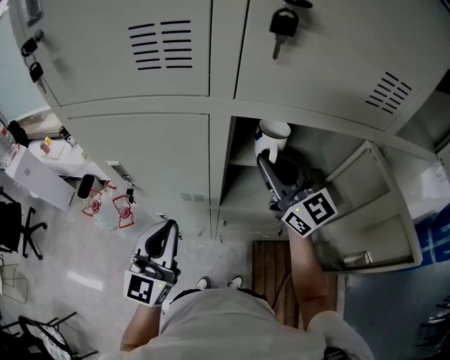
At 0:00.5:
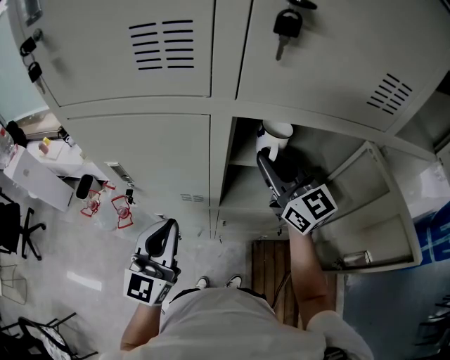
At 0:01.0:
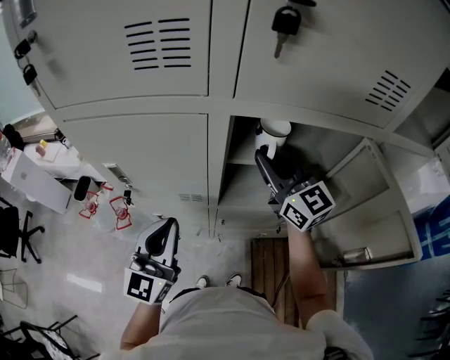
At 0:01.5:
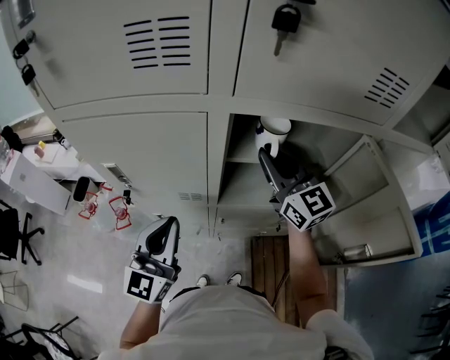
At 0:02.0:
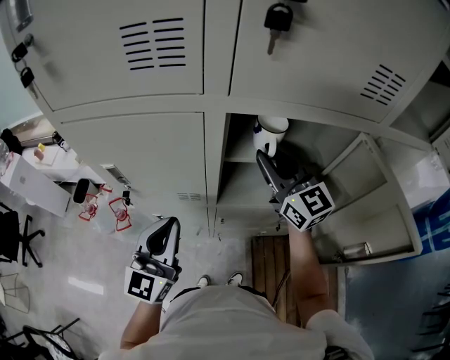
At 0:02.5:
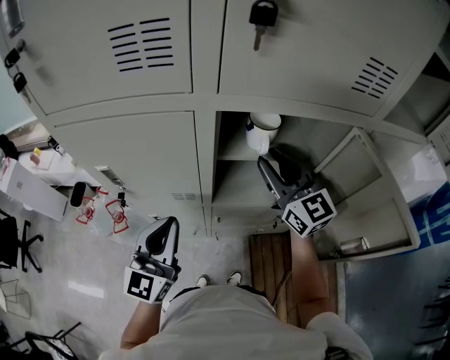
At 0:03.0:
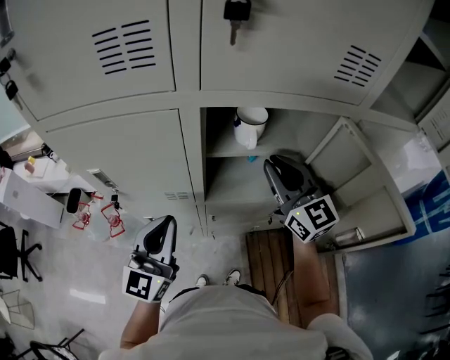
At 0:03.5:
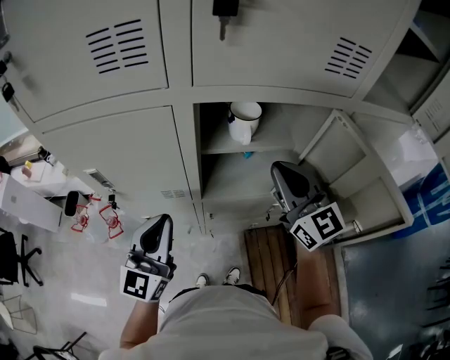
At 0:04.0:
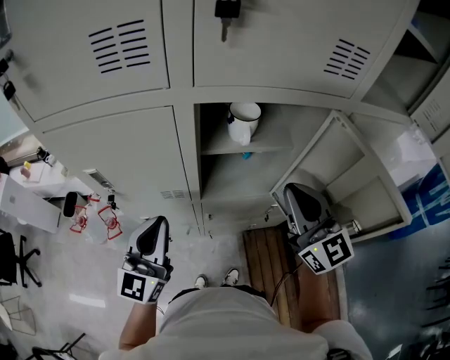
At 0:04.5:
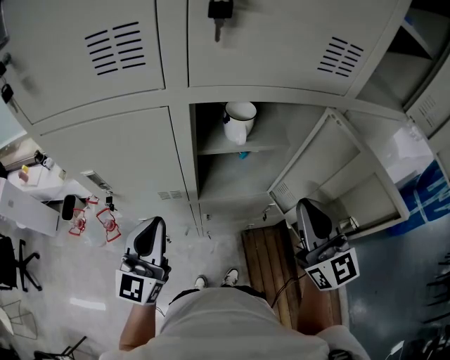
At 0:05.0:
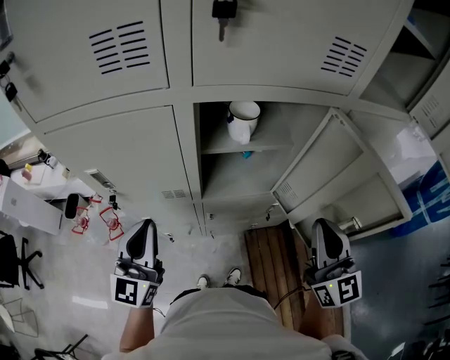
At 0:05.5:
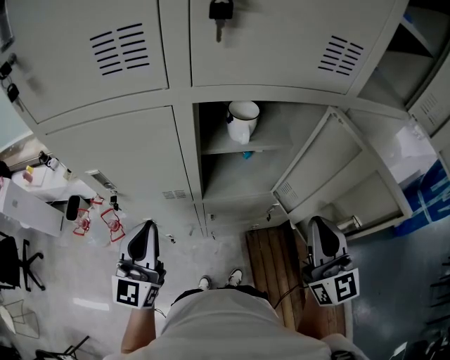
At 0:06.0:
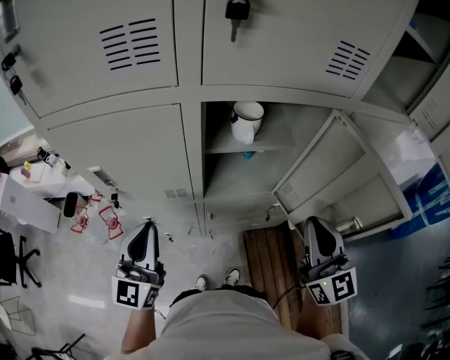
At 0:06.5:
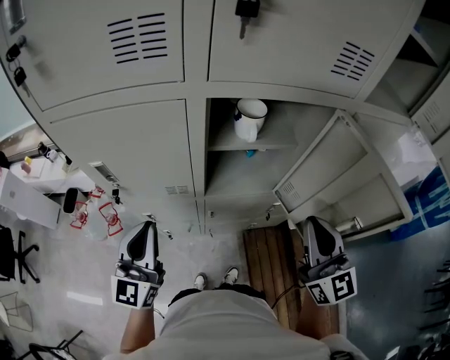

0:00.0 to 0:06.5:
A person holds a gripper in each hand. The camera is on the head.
0:00.0 to 0:02.0: The grippers stay close to where they were, moving slightly.
0:02.0 to 0:04.5: The right gripper travels backward and to the right by approximately 20 cm.
0:04.5 to 0:06.5: There are only small adjustments of the grippers.

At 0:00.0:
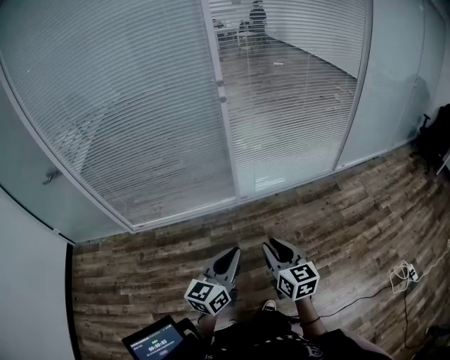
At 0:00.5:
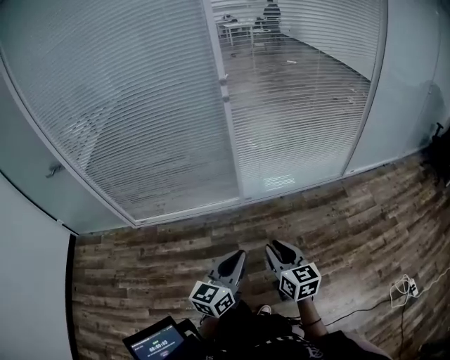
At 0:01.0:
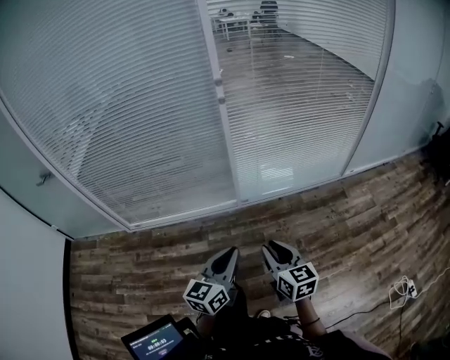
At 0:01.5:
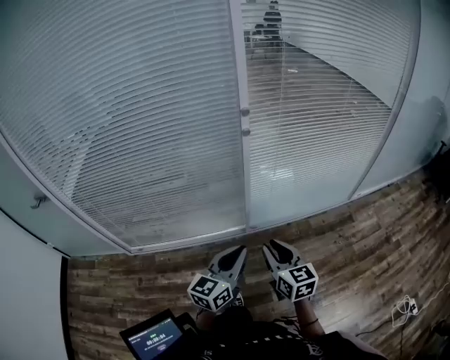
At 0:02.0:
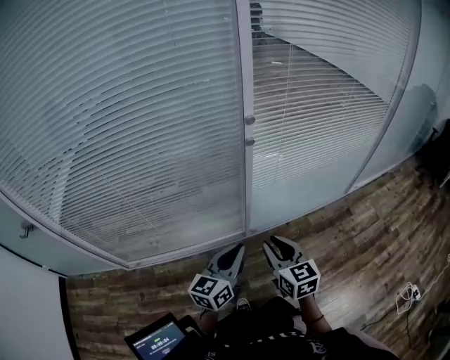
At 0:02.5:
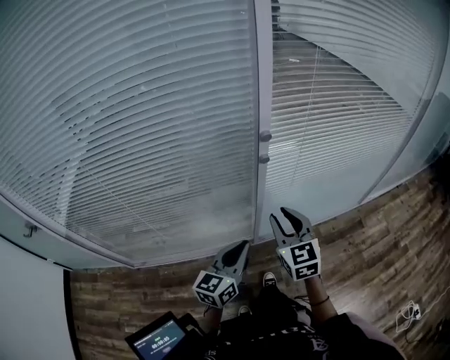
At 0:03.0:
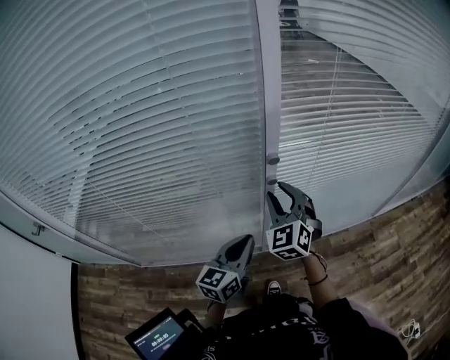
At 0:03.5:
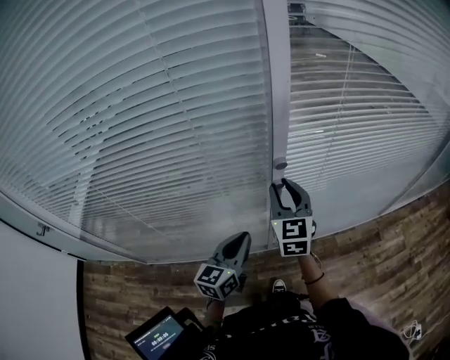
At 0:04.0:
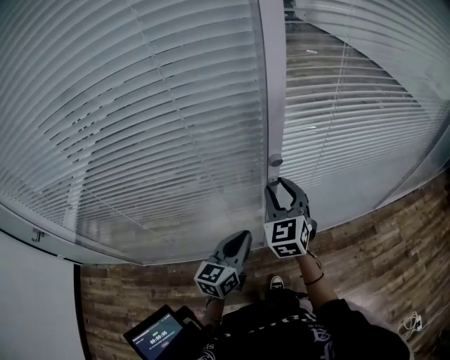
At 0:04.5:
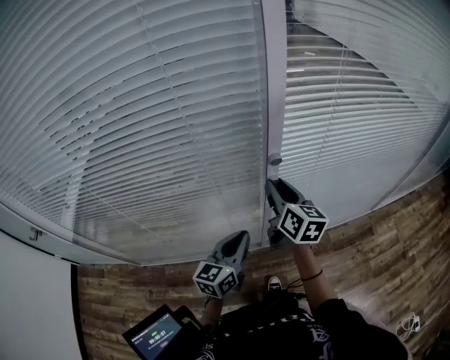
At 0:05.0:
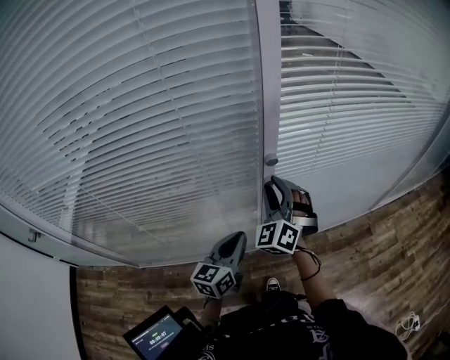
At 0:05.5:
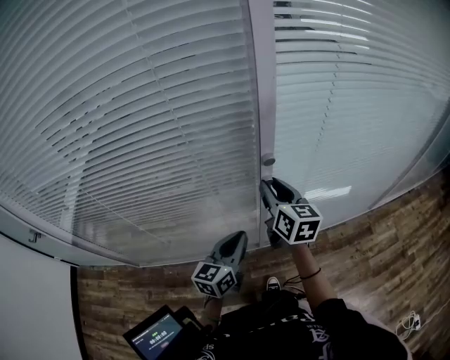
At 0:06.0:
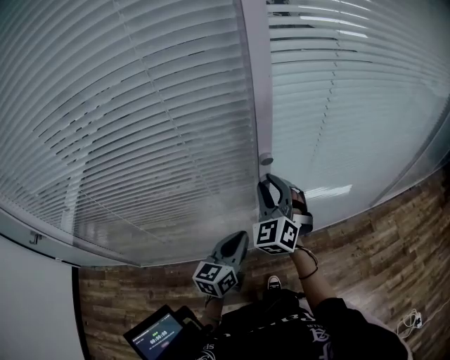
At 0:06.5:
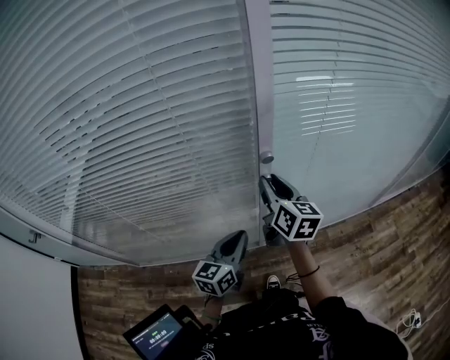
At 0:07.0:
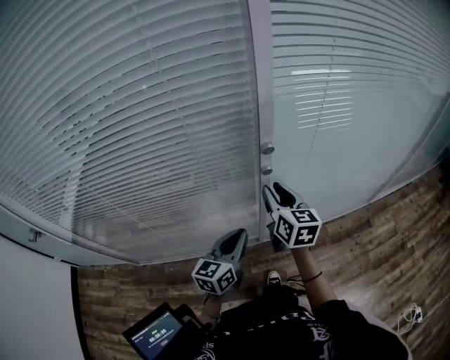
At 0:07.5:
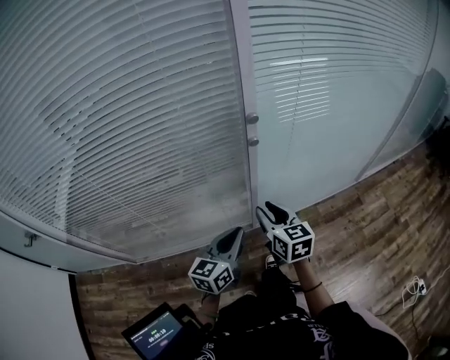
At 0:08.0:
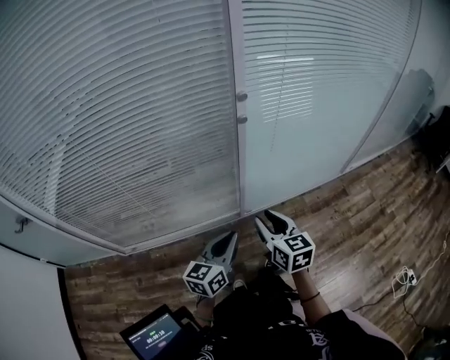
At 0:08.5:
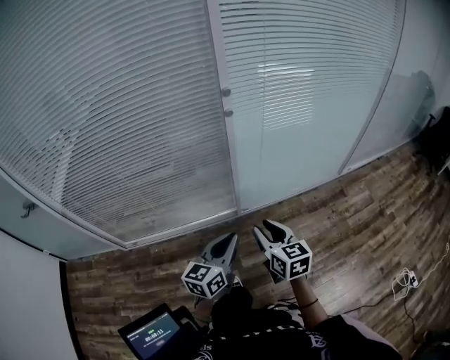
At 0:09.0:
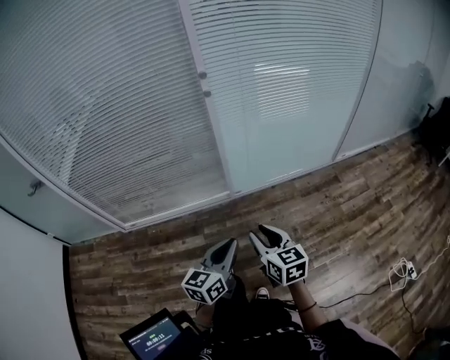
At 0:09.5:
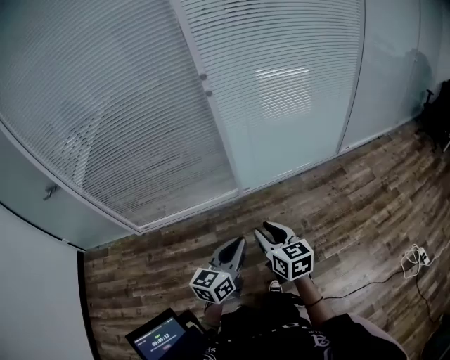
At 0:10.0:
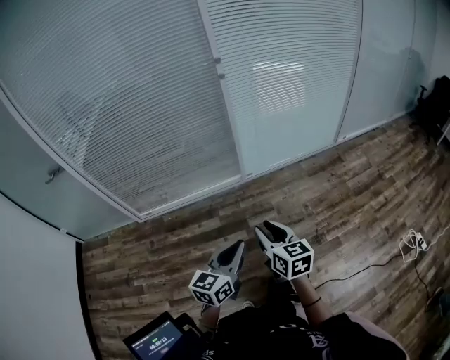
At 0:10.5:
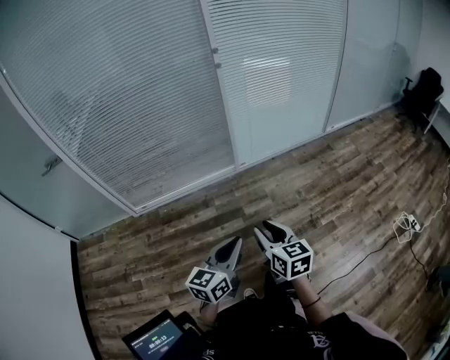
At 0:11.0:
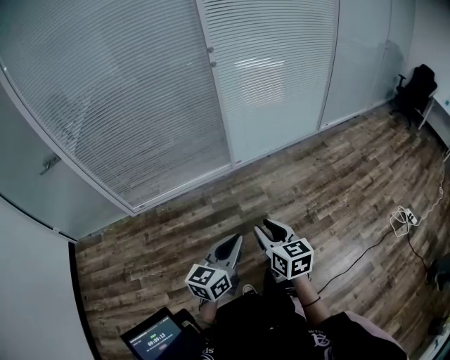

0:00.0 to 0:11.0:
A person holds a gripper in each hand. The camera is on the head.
0:00.0 to 0:02.0: The two grippers travel together, forward, about 50 cm.
0:02.0 to 0:03.5: Both grippers move forward, some 30 cm.
0:03.5 to 0:05.5: The right gripper swivels roughly 30 degrees.
0:05.5 to 0:07.5: The left gripper heads backward, covering roughly 10 cm, while the right gripper goes approximately 20 cm backward and downward.
0:07.5 to 0:09.0: The two grippers travel together, backward and to the right, about 40 cm.
0:09.0 to 0:11.0: The grippers both shift backward by roughly 35 cm.

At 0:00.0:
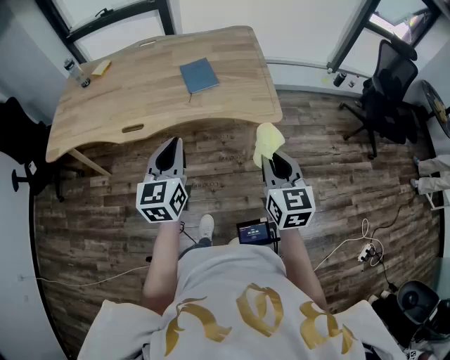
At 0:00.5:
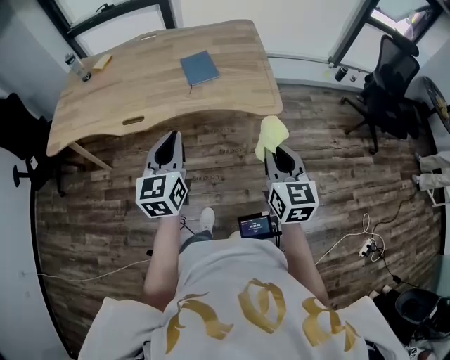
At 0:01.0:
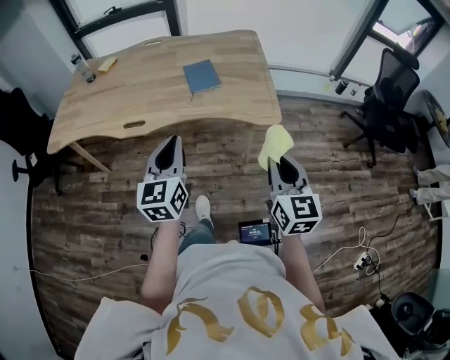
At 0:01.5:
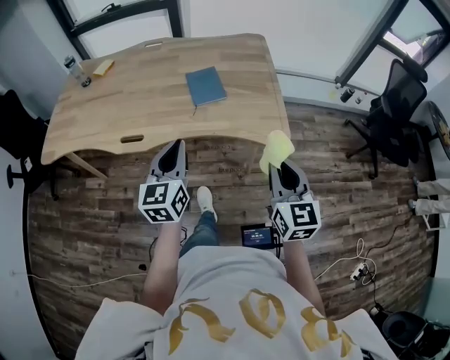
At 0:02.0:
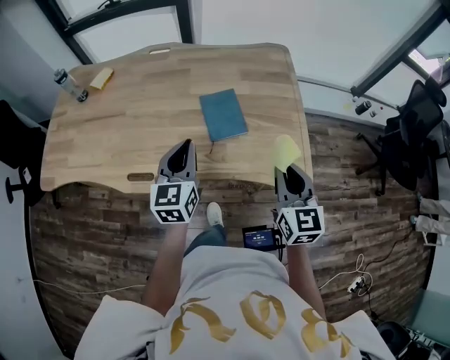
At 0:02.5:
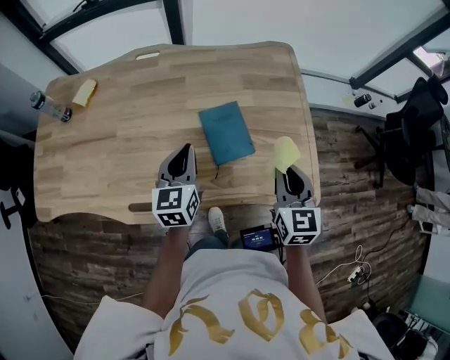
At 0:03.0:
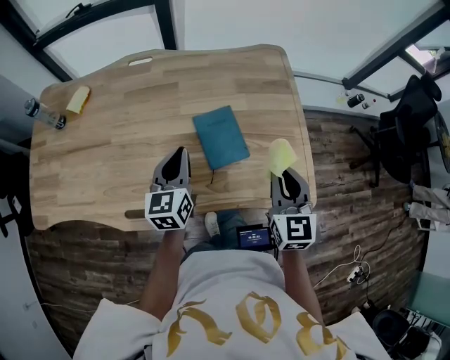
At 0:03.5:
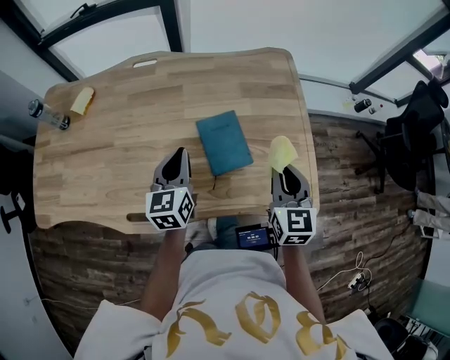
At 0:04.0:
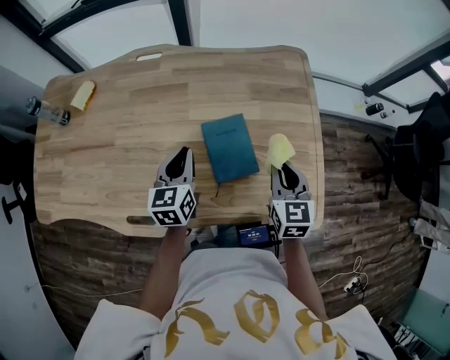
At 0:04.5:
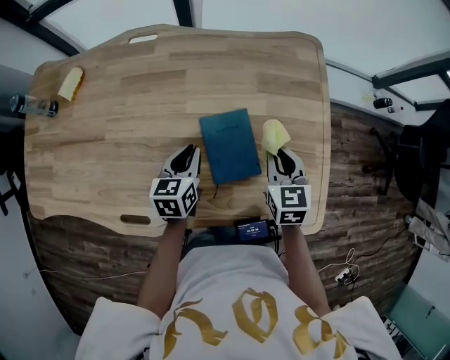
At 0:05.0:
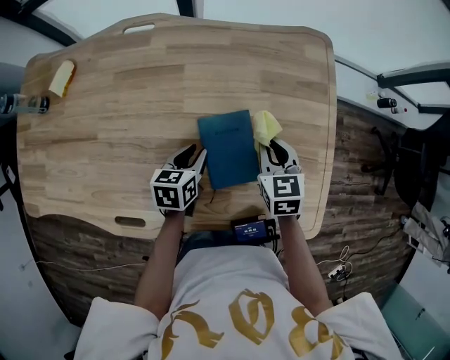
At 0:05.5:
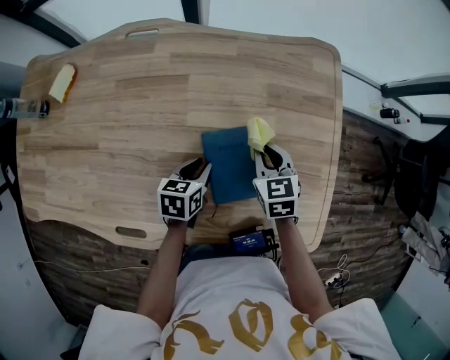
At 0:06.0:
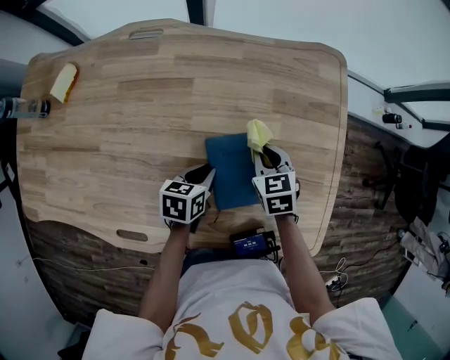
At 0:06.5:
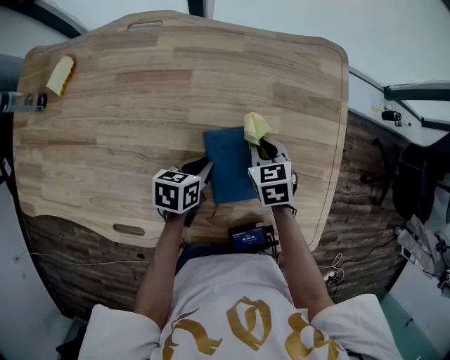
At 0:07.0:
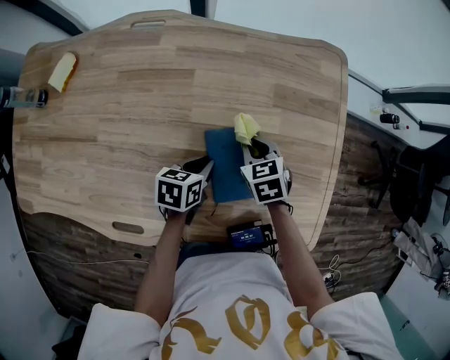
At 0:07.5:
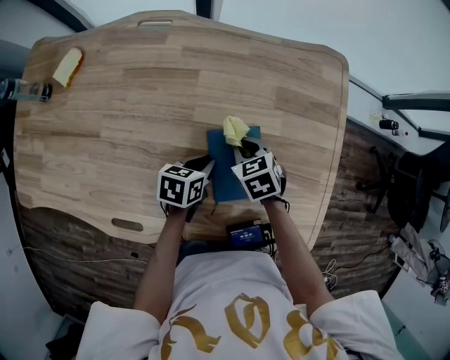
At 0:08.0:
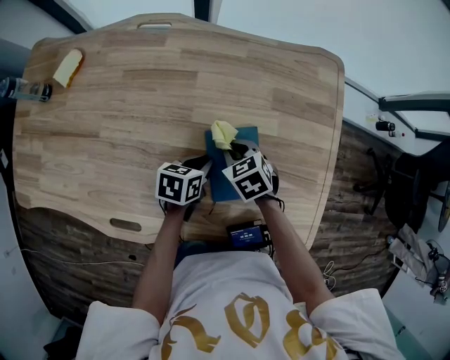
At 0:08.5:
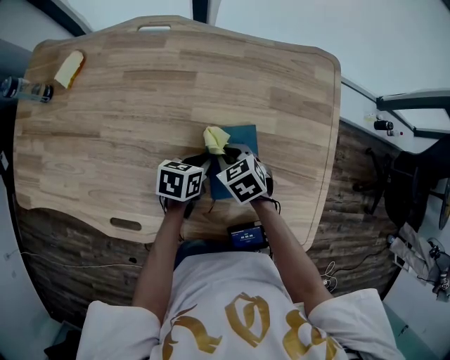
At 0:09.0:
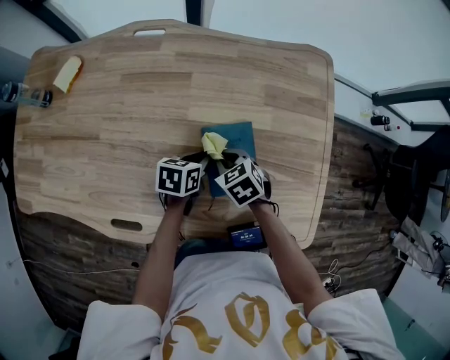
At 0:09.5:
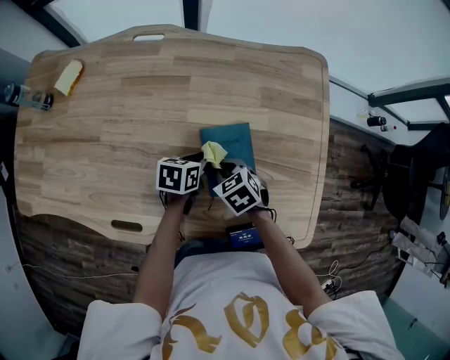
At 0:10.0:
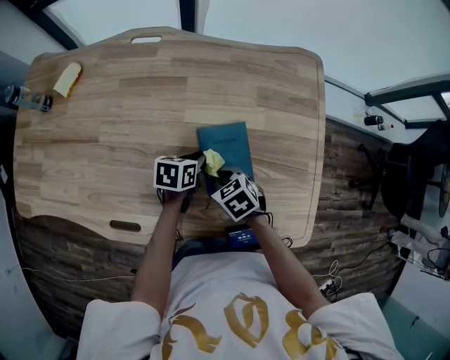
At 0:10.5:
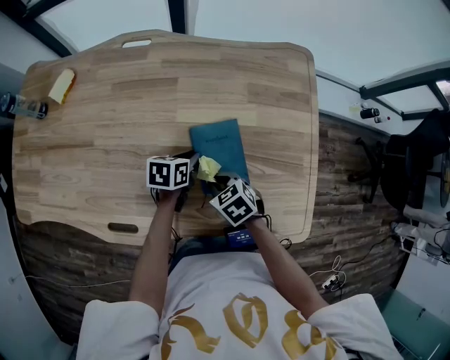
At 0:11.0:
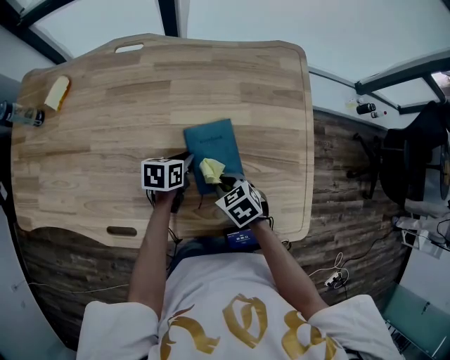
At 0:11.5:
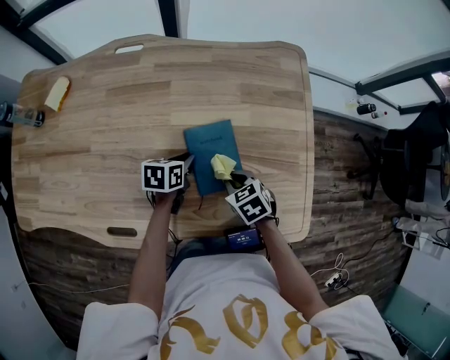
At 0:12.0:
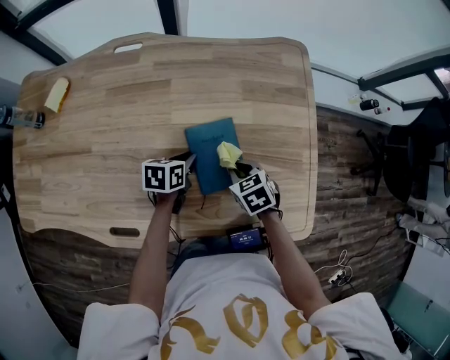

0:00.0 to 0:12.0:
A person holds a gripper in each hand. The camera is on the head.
0:00.0 to 0:02.0: The grippers both shift forward by some 30 cm.
0:02.0 to 0:04.0: Both grippers travel together forward and downward, roughly 20 cm.
0:04.0 to 0:06.0: The right gripper is displaced downward, forward and to the left by approximately 20 cm, and turns by about 30 degrees. Meanwhile the left gripper is displaced downward by approximately 15 cm, and changes its angle by some 40 degrees.
0:06.0 to 0:08.0: The right gripper heads to the left, covering some 10 cm, and turns by roughly 20 degrees.
0:08.0 to 0:10.0: The right gripper moves backward, some 10 cm.
0:10.0 to 0:12.0: The right gripper shifts roughly 10 cm to the right.
